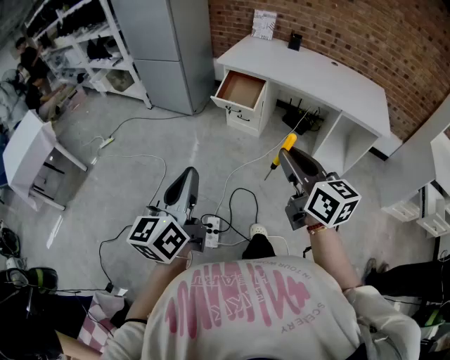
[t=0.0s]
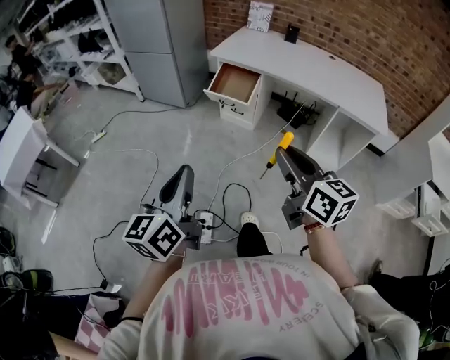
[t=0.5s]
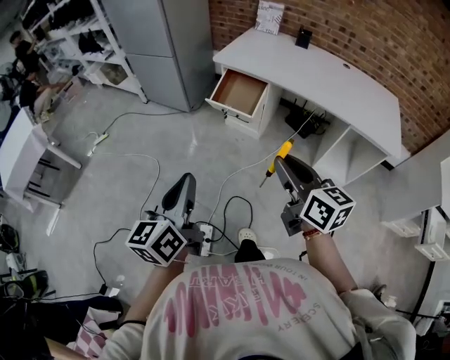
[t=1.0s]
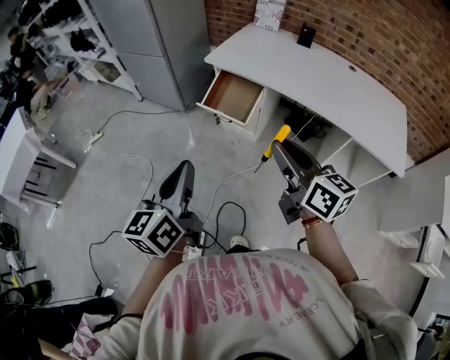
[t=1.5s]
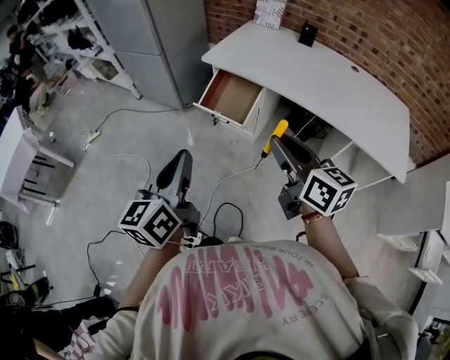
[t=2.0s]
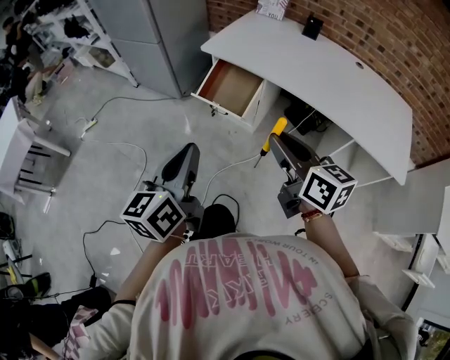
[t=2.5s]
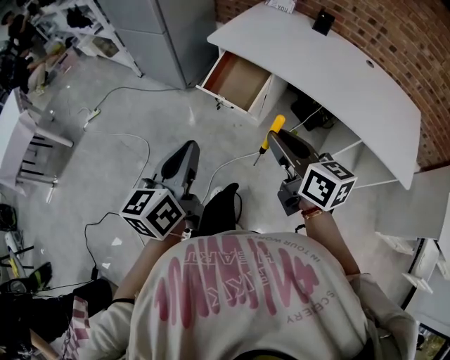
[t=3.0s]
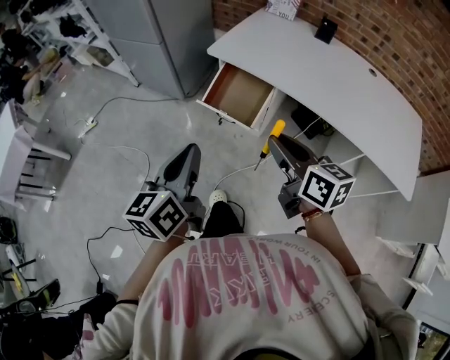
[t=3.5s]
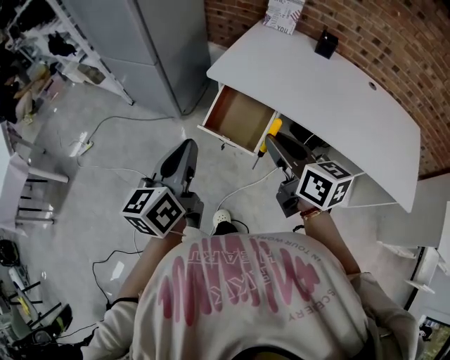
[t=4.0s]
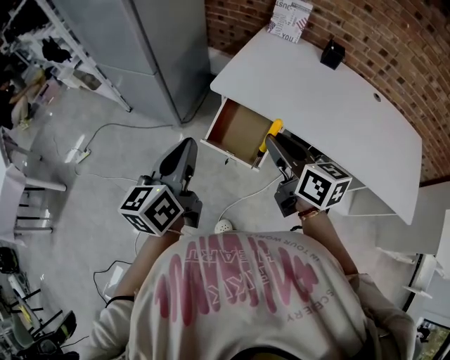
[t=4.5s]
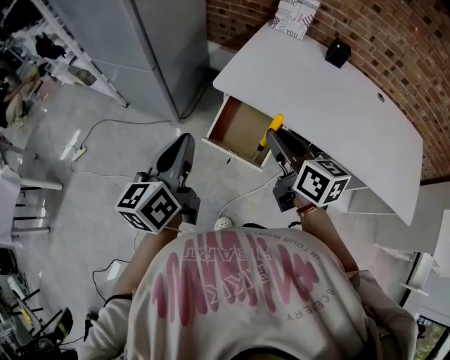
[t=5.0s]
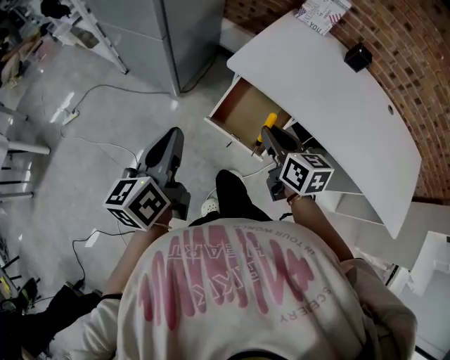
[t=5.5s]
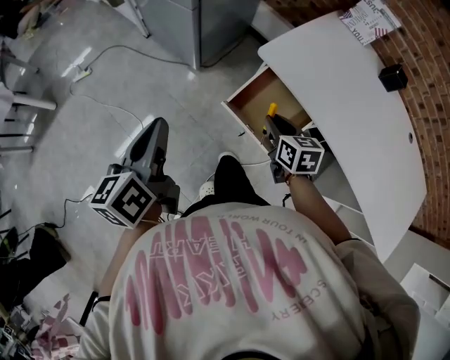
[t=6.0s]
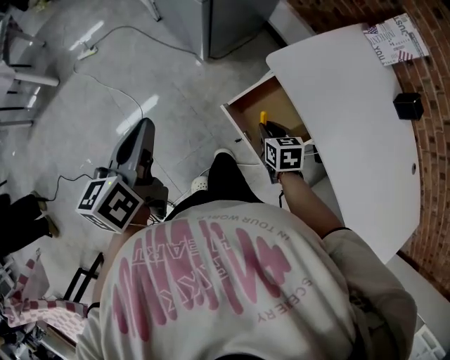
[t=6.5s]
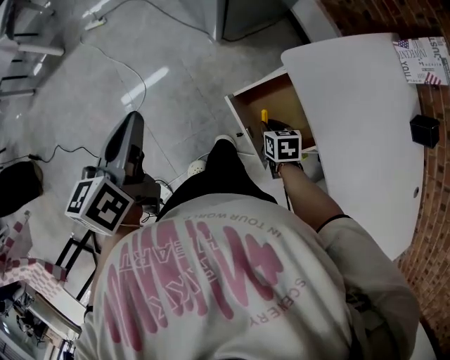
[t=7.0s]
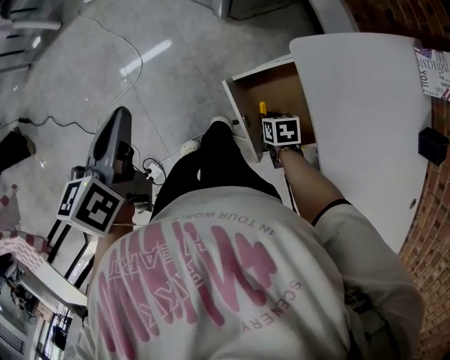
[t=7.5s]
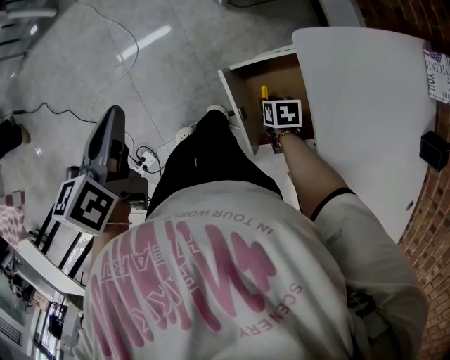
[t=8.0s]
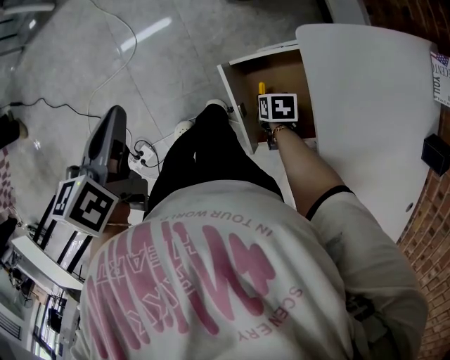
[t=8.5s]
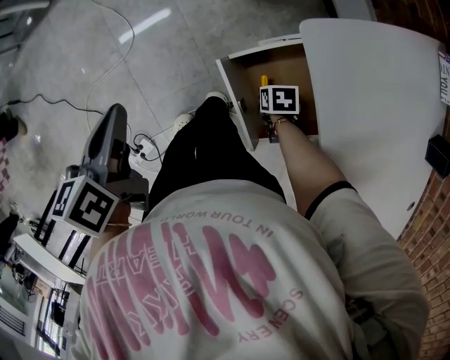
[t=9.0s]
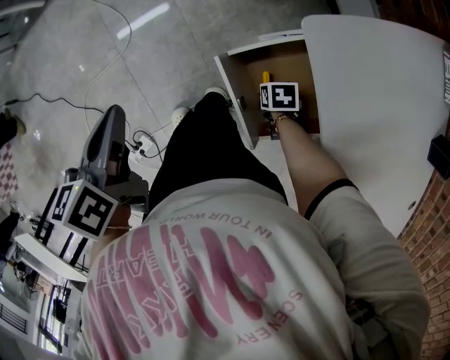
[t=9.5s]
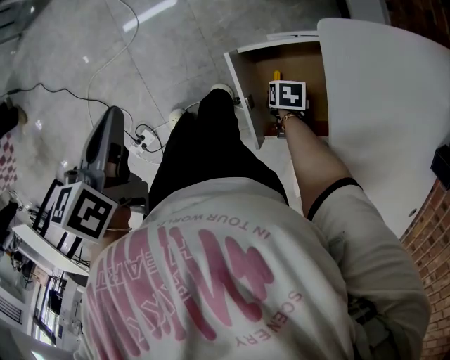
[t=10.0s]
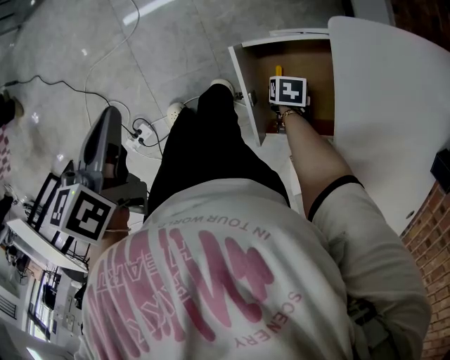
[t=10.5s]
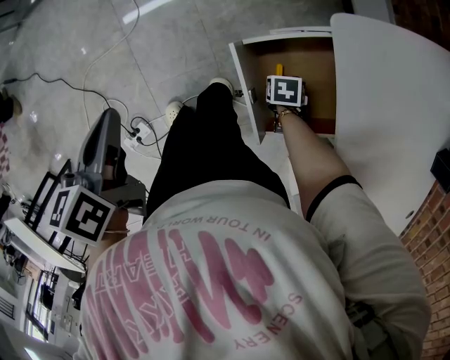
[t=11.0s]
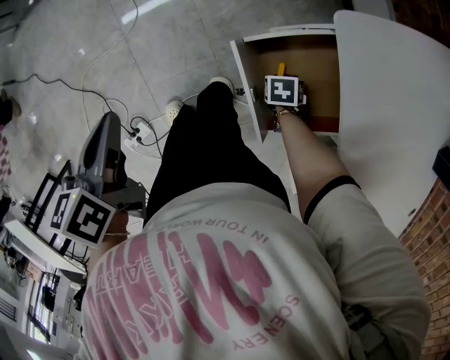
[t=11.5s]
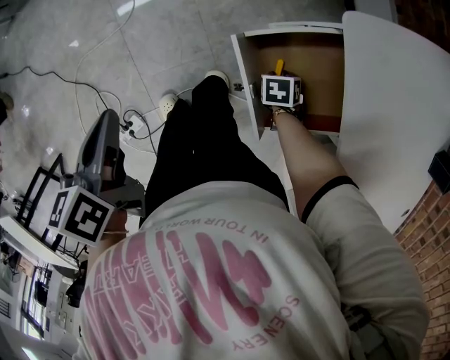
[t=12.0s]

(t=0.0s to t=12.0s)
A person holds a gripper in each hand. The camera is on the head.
t=0.0s - t=2.0s: Both grippers move forward and to the right, roughly 35 cm.
t=2.0s - t=4.0s: The grippers both shift forward by approximately 25 cm.
t=4.0s - t=6.0s: The left gripper shifts roughly 20 cm to the left, forward and downward, and rotates some 20 degrees. Meanwhile the right gripper moves downward and forward, approximately 30 cm, and turns by about 30 degrees.
t=6.0s - t=8.0s: The left gripper shifts some 10 cm downward, and turns by some 30 degrees, while the right gripper heads downward, covering some 25 cm, and tips its fingers downward by roughly 30 degrees.
t=8.0s - t=10.0s: The right gripper is displaced downward by approximately 5 cm.
t=10.0s - t=12.0s: The left gripper moves some 5 cm.

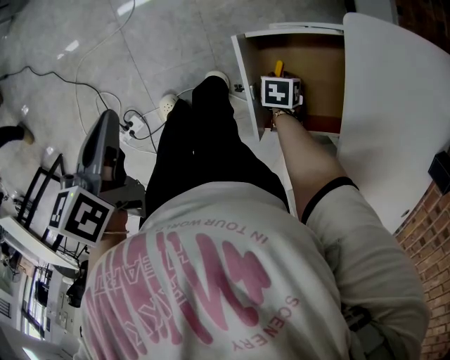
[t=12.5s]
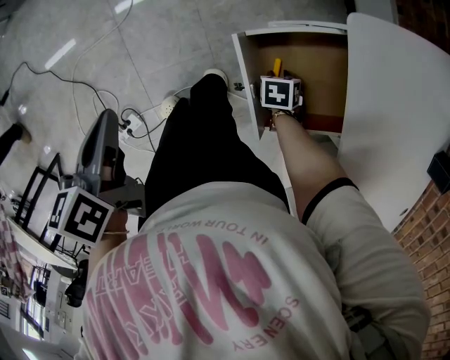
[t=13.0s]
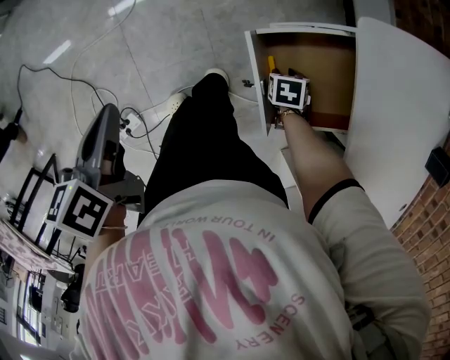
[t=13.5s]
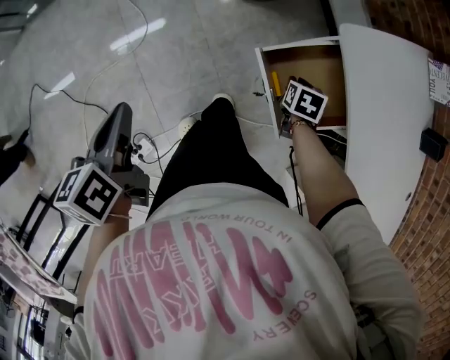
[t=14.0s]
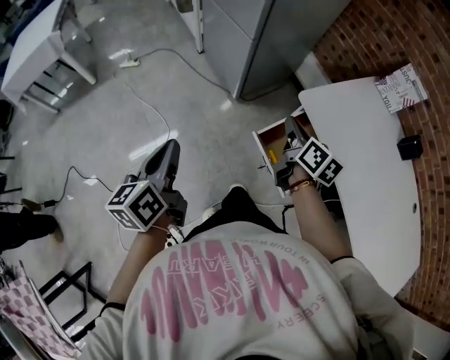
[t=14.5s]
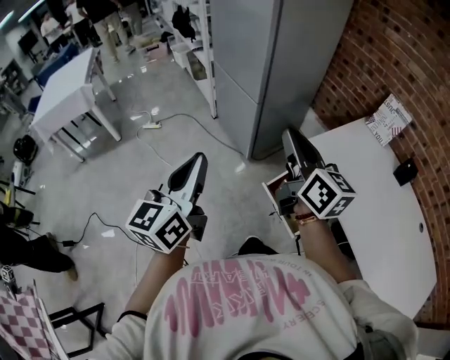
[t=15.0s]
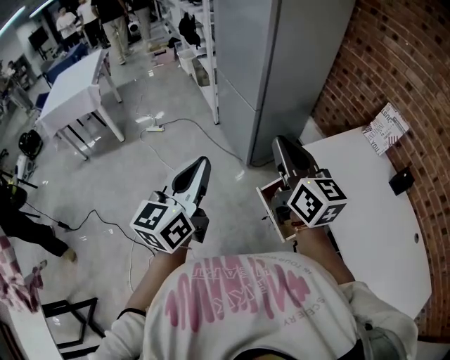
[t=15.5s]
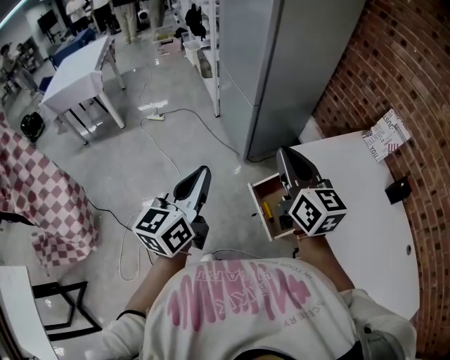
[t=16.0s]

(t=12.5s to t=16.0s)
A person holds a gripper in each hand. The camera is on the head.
t=12.5s - t=14.5s: The right gripper is displaced upward by some 40 cm, tilts its fingers roughly 60 degrees upward, and closes, while the left gripper shifts approximately 15 cm upward, and points its fingers approximately 30 degrees further upward.
t=14.5s - t=16.0s: The left gripper goes some 20 cm upward and to the right, and rotates approximately 20 degrees, while the right gripper moves upward, roughly 20 cm, and changes its angle by approximately 40 degrees.

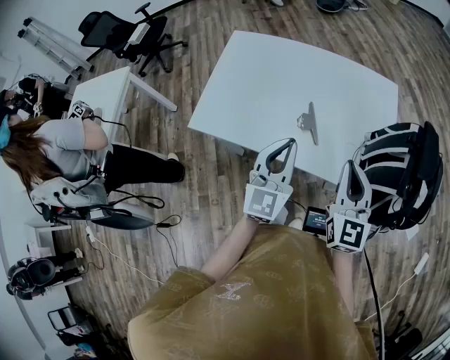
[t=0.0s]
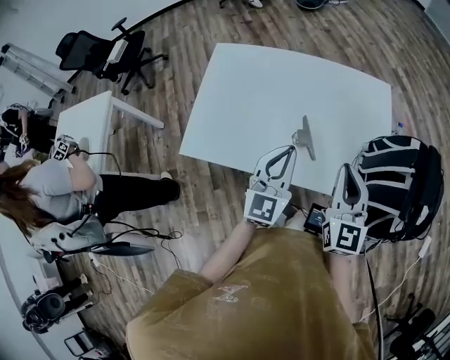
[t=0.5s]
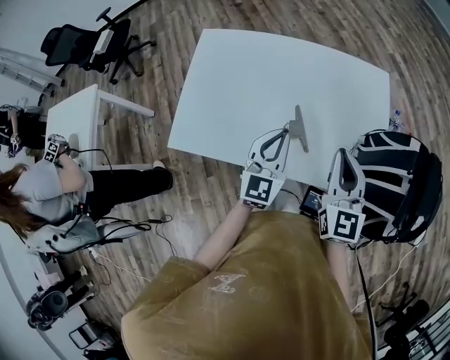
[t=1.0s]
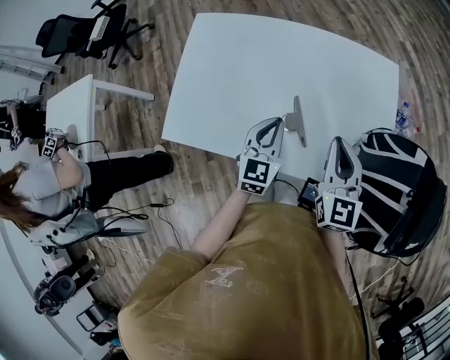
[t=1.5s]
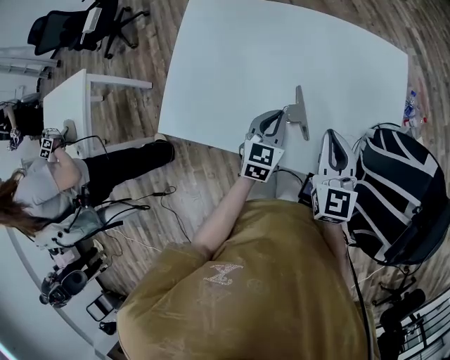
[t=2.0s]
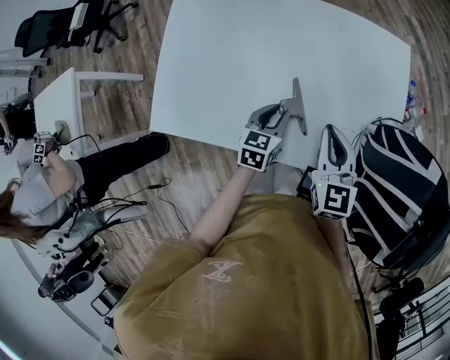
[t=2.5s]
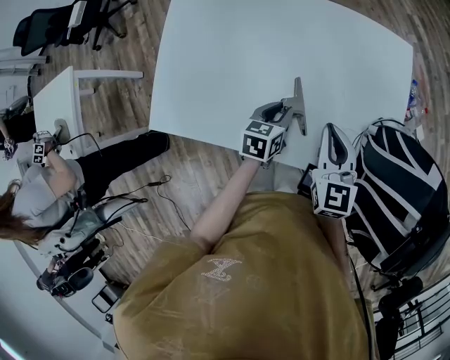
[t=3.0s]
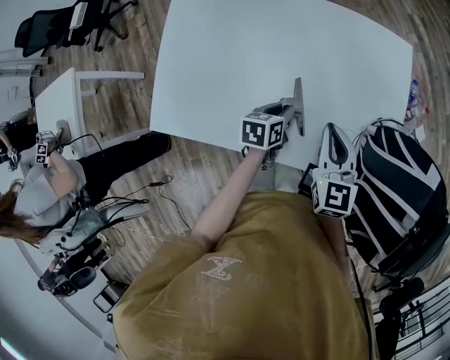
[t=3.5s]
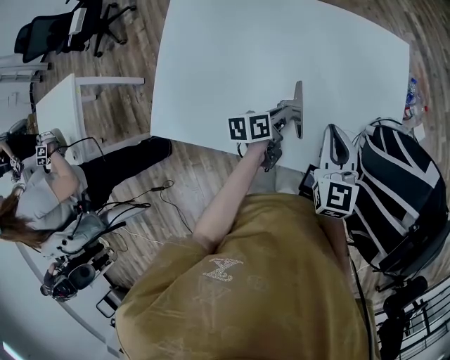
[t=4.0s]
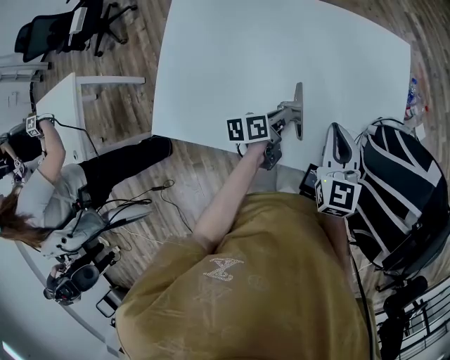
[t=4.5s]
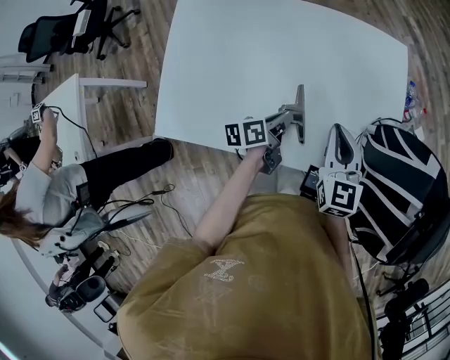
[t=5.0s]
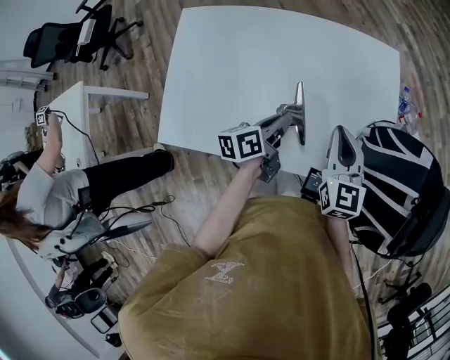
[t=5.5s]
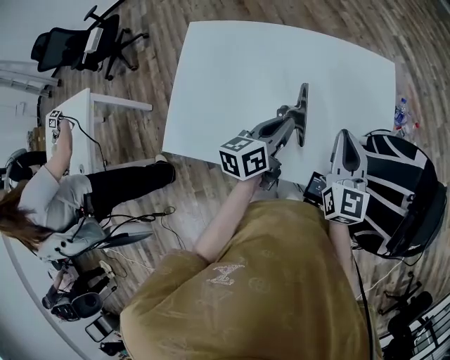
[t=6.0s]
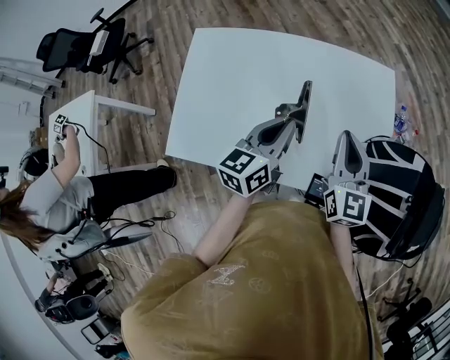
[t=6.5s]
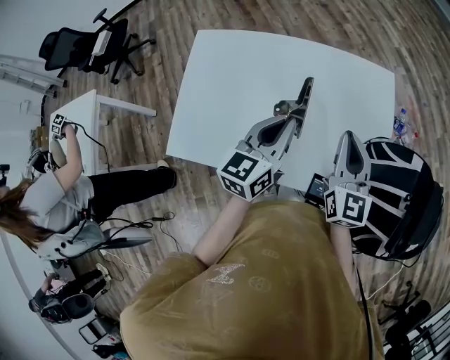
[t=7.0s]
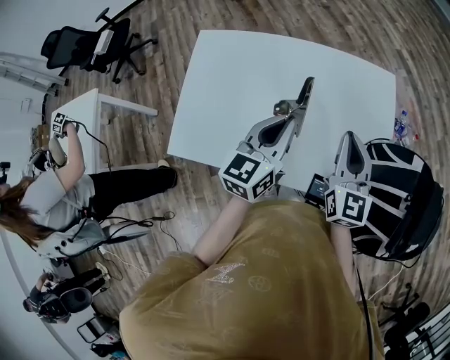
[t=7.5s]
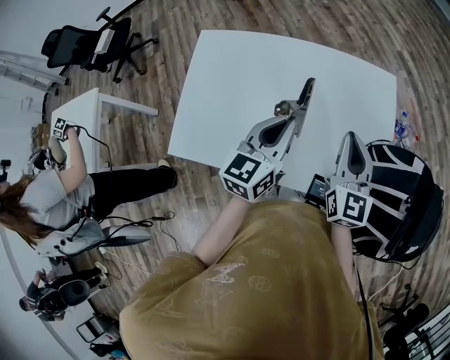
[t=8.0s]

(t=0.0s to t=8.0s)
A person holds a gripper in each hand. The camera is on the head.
t=0.0s - t=2.0s: The left gripper moves downward and forward, roughly 25 cm, and angles its fingers downward, by some 30 degrees; the right gripper moves forward and downward, some 20 cm.
t=2.0s - t=4.0s: The left gripper moves downward, roughly 5 cm, and rolls counterclockwise, seen from behind, by approximately 50 degrees.
t=4.0s - t=6.0s: The right gripper moves upward, approximately 10 cm, while the left gripper travels upward by about 15 cm, and swivels about 30 degrees.
t=6.0s - t=8.0s: The left gripper heads upward, covering some 10 cm, and changes its angle by some 30 degrees.

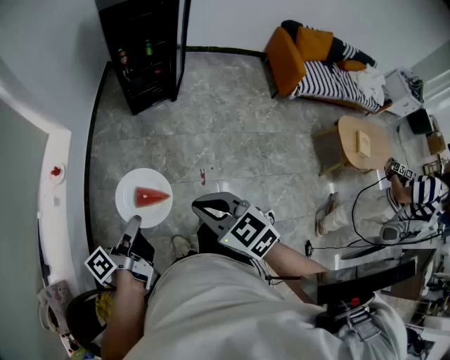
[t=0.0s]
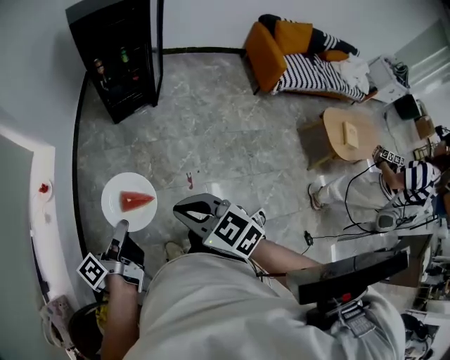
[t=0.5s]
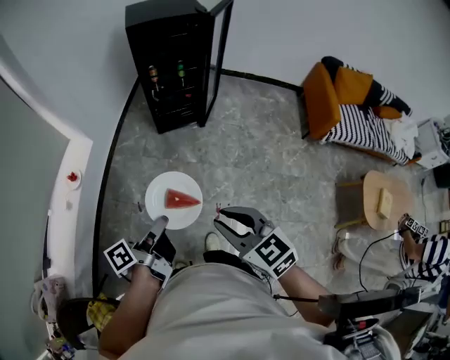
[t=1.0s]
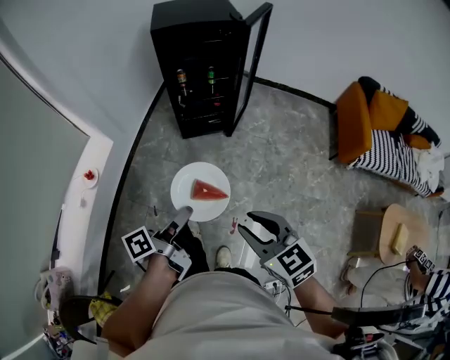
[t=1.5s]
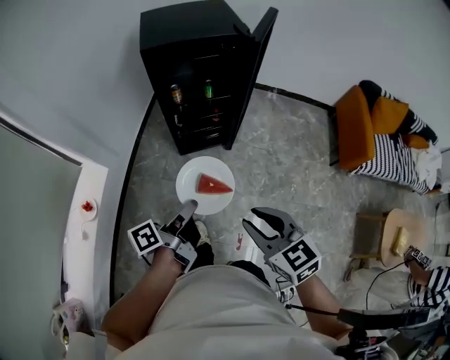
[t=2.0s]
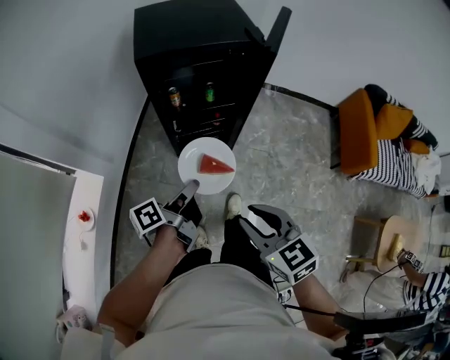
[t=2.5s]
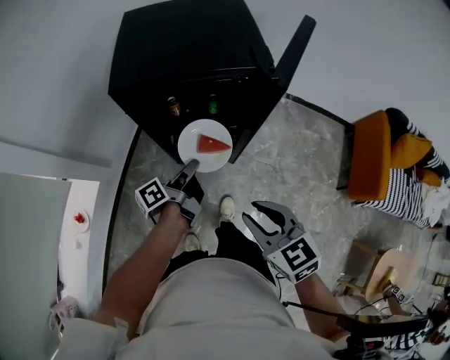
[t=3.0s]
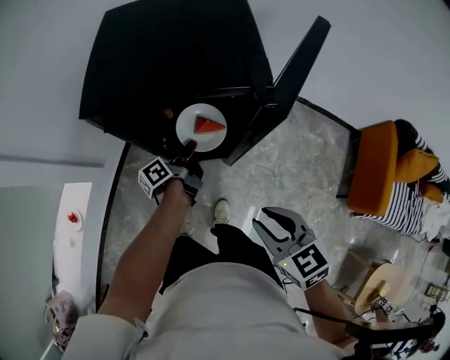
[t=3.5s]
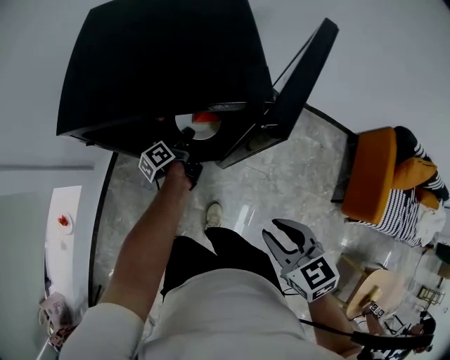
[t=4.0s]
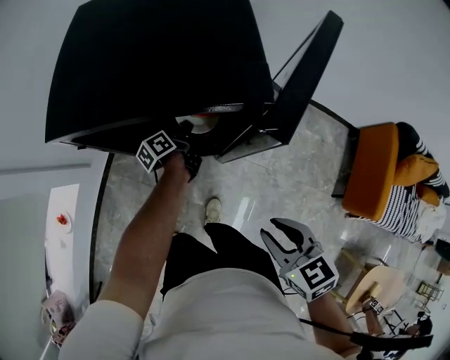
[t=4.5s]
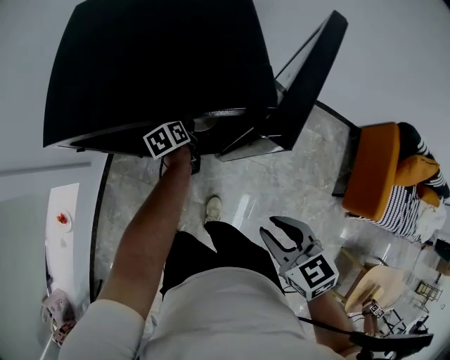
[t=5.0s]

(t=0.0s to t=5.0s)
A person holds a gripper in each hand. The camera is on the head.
t=0.0s - t=2.5s: The pair of grippers is taken forward, about 60 cm. The right gripper opens its fingers.
t=2.5s - t=5.0s: The left gripper moves forward and downward, roughly 50 cm, and tips its fingers downward by some 40 degrees, while the right gripper goes approximately 30 cm forward and to the right.
